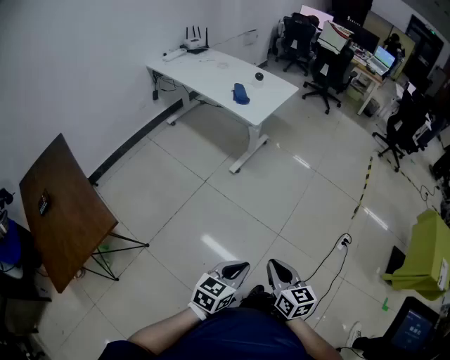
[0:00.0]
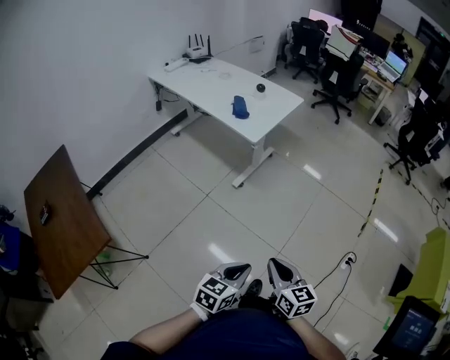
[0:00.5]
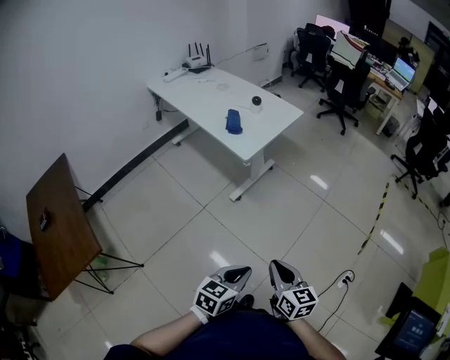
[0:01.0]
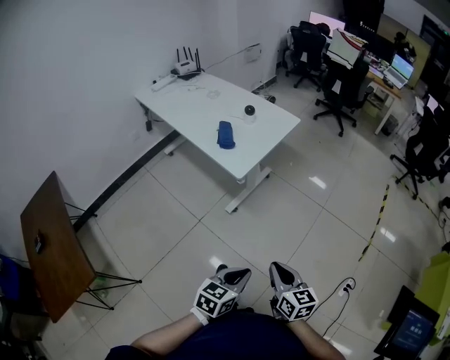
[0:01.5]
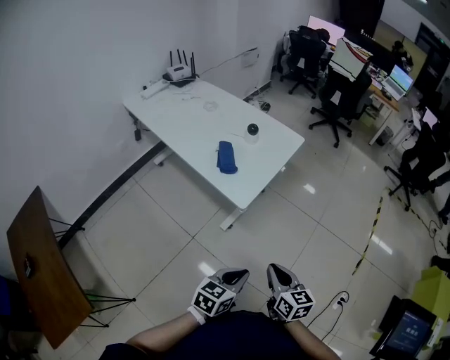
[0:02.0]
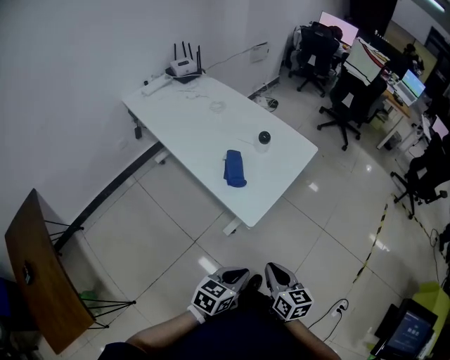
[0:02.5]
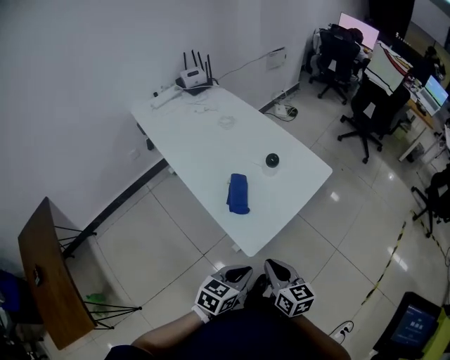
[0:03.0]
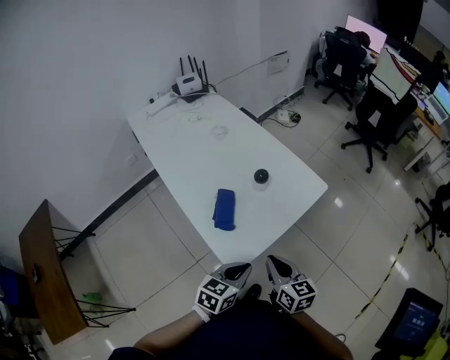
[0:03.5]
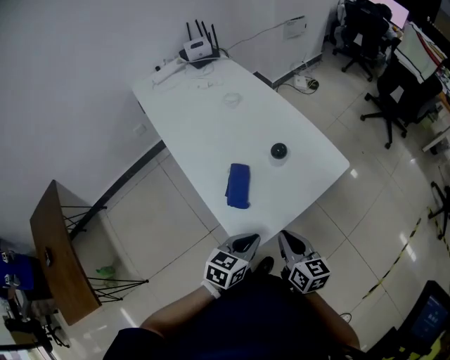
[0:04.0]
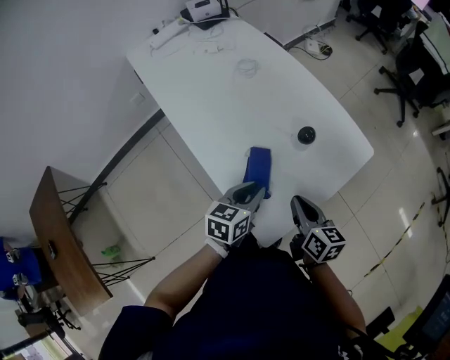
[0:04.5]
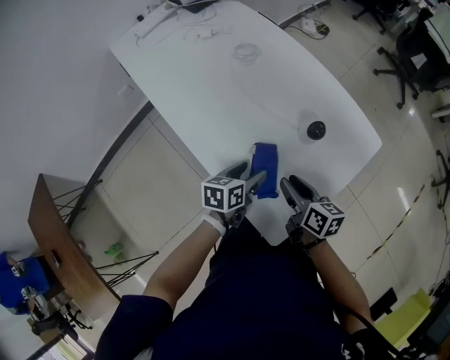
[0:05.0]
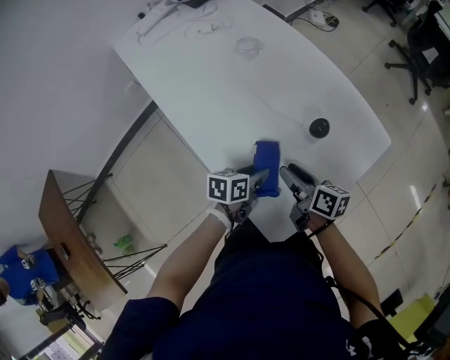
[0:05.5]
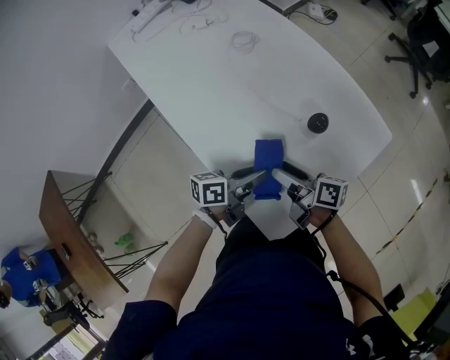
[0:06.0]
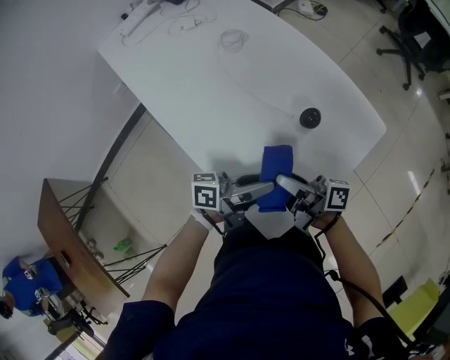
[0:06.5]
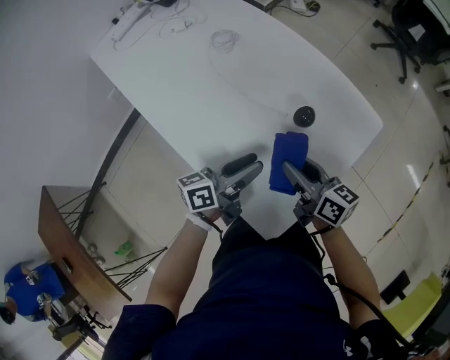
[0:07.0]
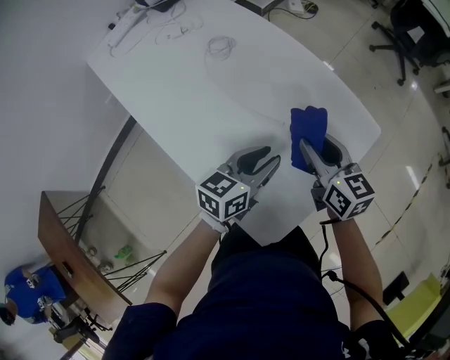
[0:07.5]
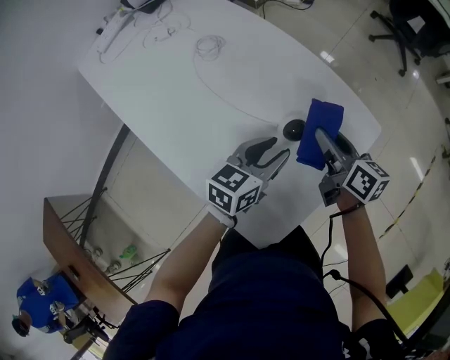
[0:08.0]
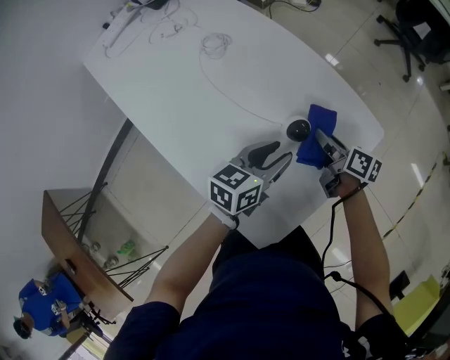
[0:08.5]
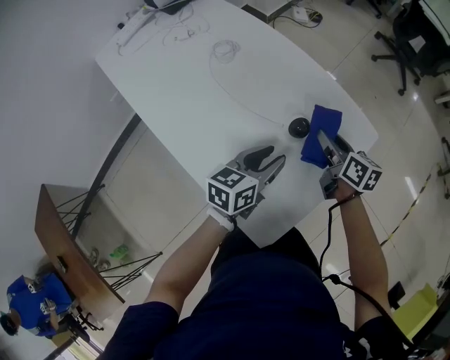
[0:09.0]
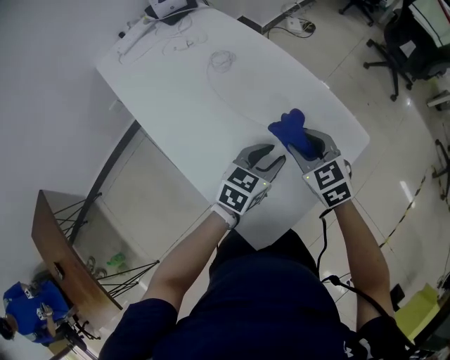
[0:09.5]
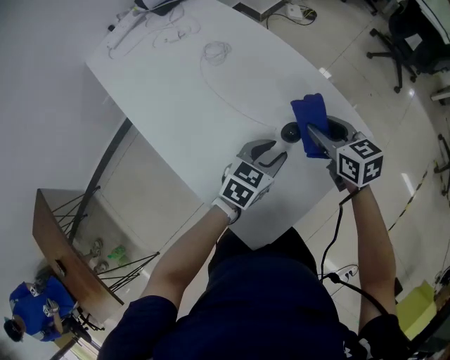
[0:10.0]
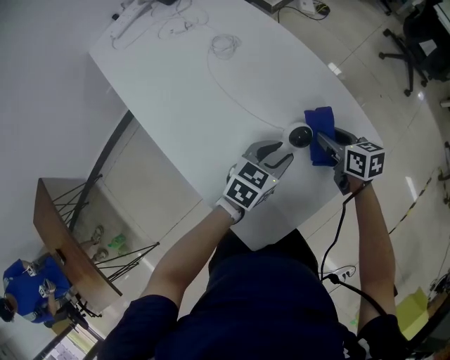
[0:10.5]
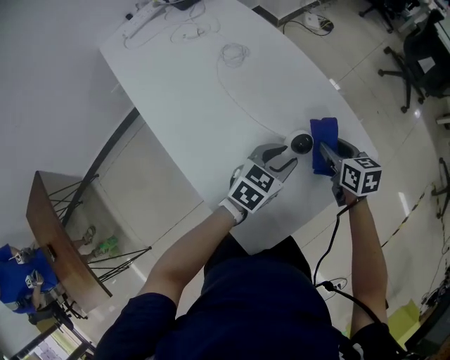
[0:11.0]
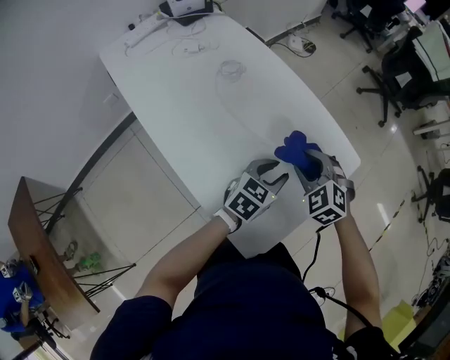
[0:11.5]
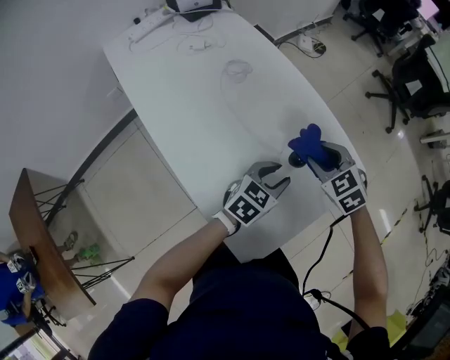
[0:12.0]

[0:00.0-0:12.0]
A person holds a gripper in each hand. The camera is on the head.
0:00.0 to 0:02.0: The pair of grippers is taken forward, about 40 cm.
0:02.0 to 0:04.0: Both grippers move forward, roughly 35 cm.
0:04.0 to 0:06.0: Both grippers move forward, to the left and downward, roughly 20 cm. The left gripper rotates roughly 40 degrees, and opens and closes again, while the right gripper rotates approximately 40 degrees, and opens its fingers.
0:06.0 to 0:08.0: The right gripper is displaced to the right and forward by some 20 cm, turns by approximately 30 degrees, and closes. Meanwhile the left gripper heads forward and to the right, covering about 15 cm, and swivels approximately 30 degrees.
0:08.0 to 0:10.0: The right gripper goes downward and returns, approximately 10 cm each way, and turns by about 40 degrees.
0:10.0 to 0:12.0: The right gripper reaches approximately 10 cm downward, then returns, and swivels about 40 degrees.

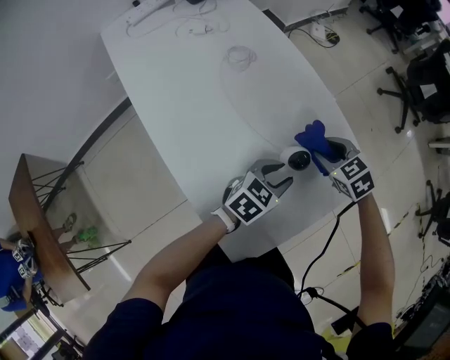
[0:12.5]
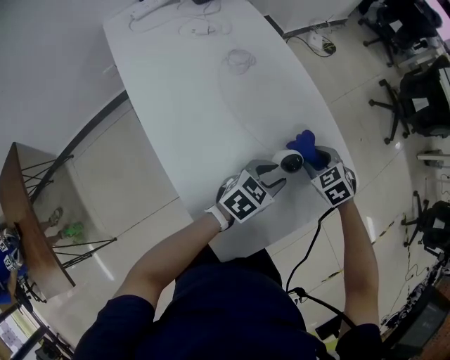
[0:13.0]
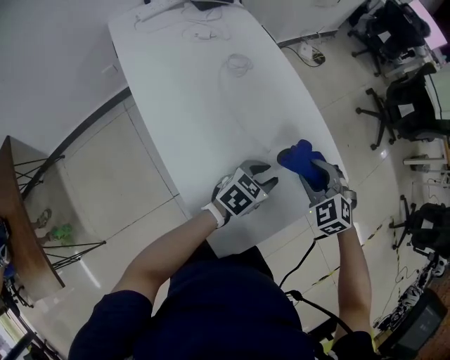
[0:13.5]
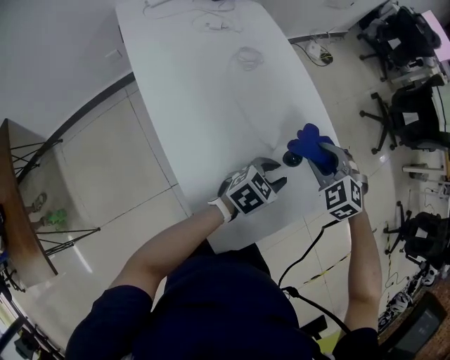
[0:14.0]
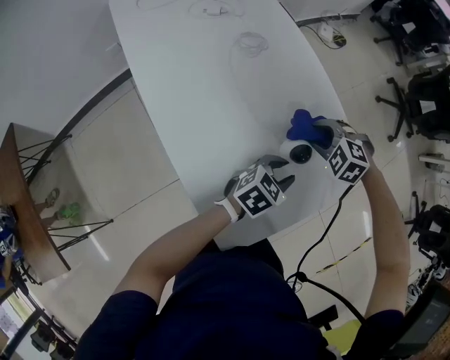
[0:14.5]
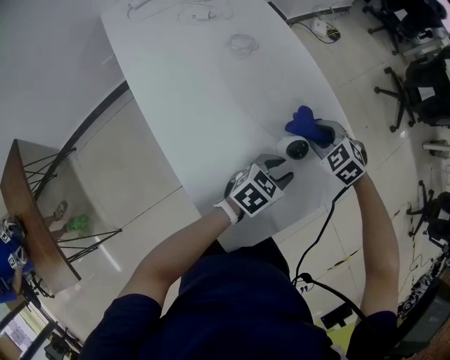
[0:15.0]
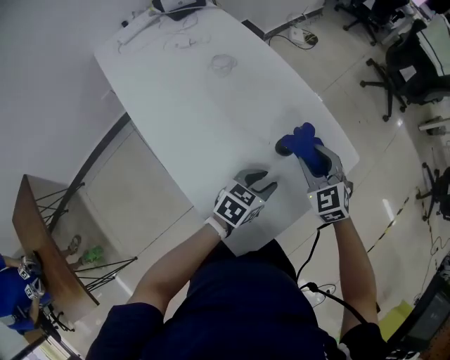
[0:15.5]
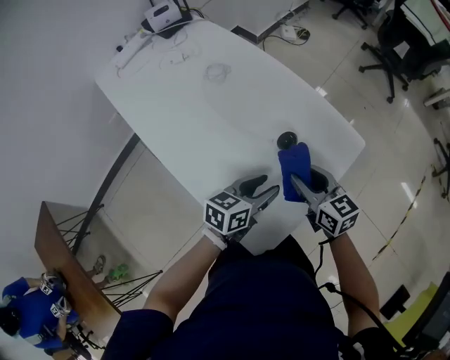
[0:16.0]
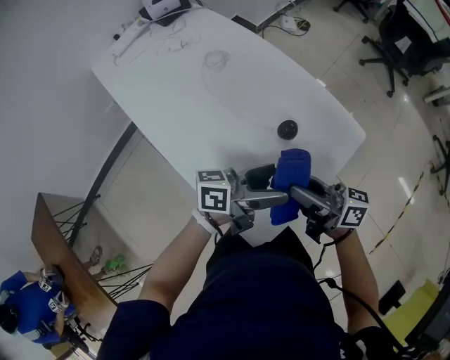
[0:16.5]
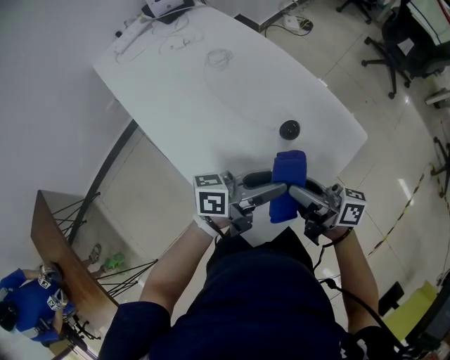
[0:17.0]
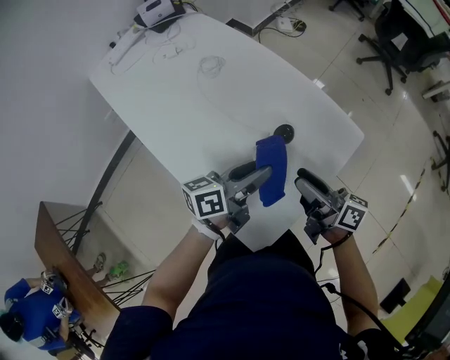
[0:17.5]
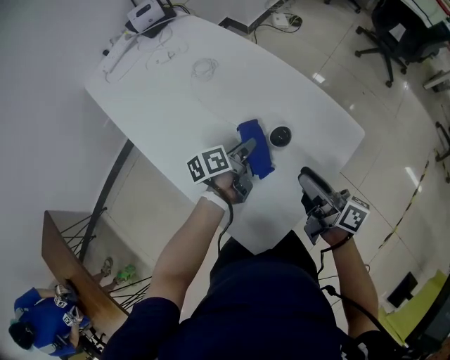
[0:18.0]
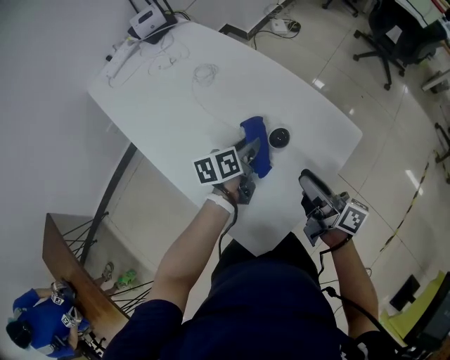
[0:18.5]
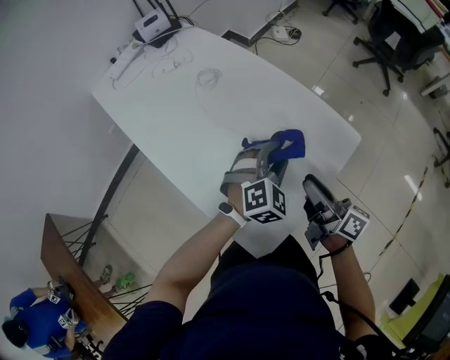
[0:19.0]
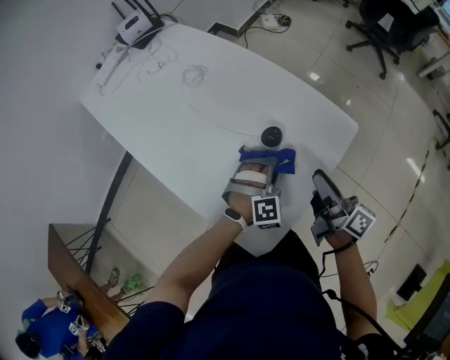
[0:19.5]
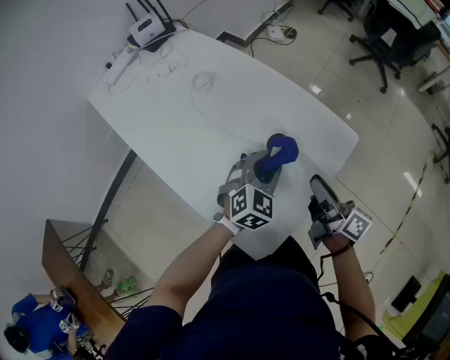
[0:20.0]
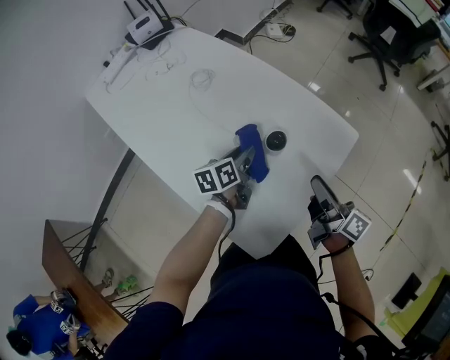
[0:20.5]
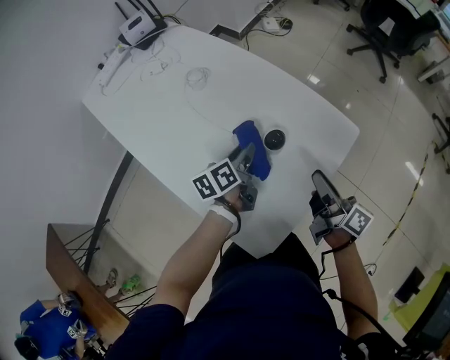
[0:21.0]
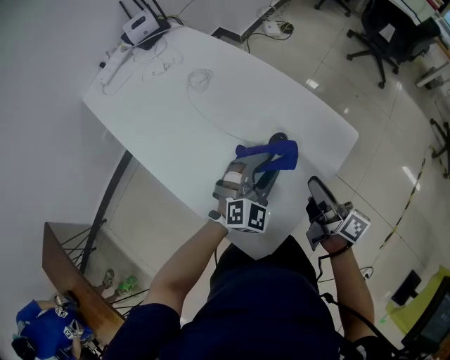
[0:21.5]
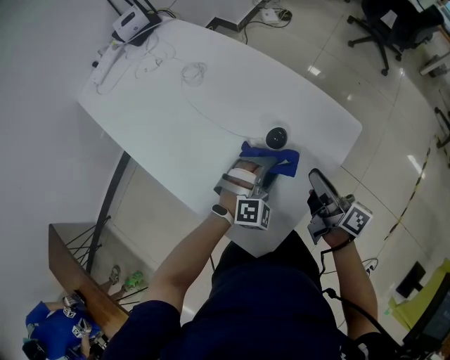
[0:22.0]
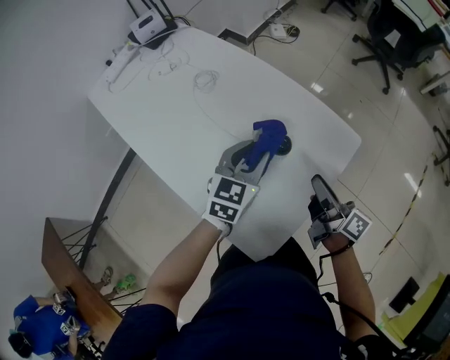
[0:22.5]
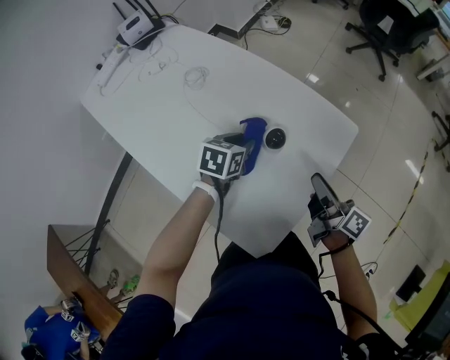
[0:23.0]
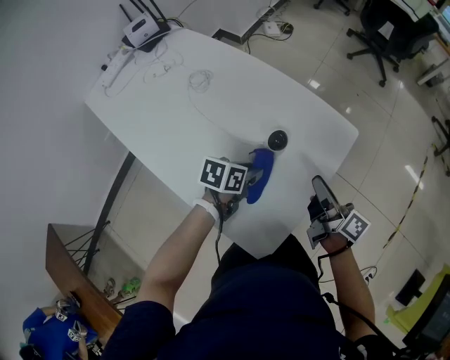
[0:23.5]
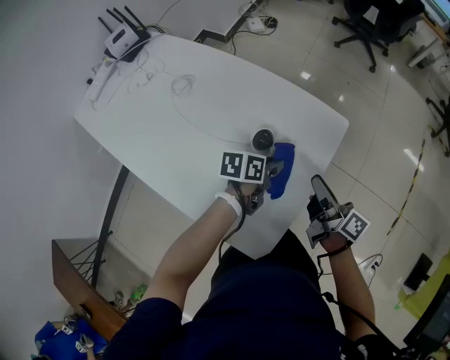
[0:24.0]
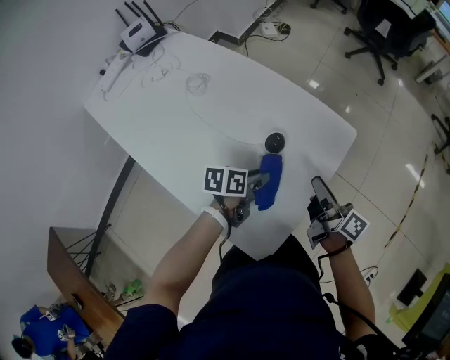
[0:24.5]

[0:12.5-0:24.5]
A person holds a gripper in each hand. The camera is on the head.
0:12.5 to 0:14.5: The right gripper travels upward and back again, some 10 cm each way, and rotates around the line of its fingers by roughly 40 degrees, counterclockwise from behind.
0:14.5 to 0:16.5: The left gripper shifts about 15 cm upward, tilts its fingers approximately 40 degrees upward, and opens its fingers, while the right gripper moves approximately 25 cm, and angles its fingers upward, by roughly 70 degrees.
0:16.5 to 0:18.5: The left gripper changes place by some 20 cm, tilts its fingers approximately 40 degrees downward, and closes up. Meanwhile the right gripper moves roughly 10 cm, and changes its angle by about 30 degrees.
0:18.5 to 0:20.5: The left gripper goes to the right and returns, approximately 10 cm each way.
0:20.5 to 0:22.5: The left gripper swings up and down, some 10 cm each way, with 2 reversals, and rotates around the line of its fingers by some 50 degrees, clockwise from behind.
0:22.5 to 0:24.5: The left gripper shifts about 15 cm downward, backward and to the right, and rotates approximately 50 degrees.

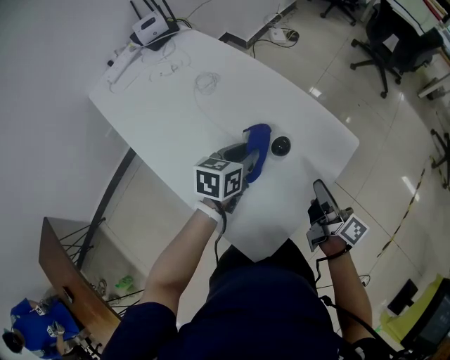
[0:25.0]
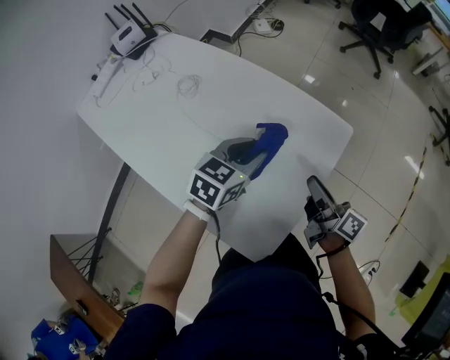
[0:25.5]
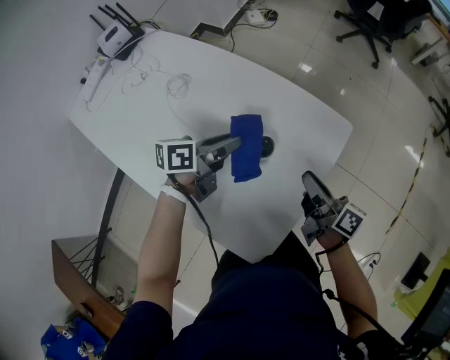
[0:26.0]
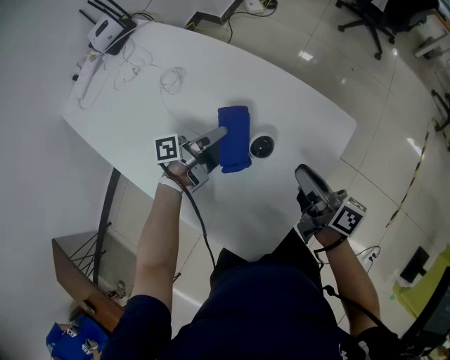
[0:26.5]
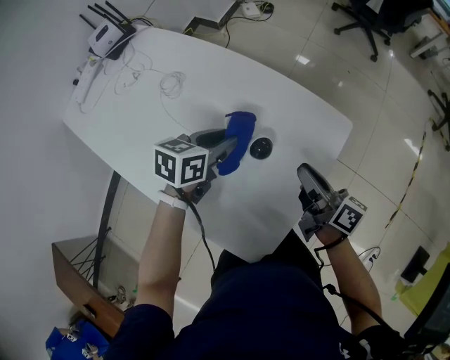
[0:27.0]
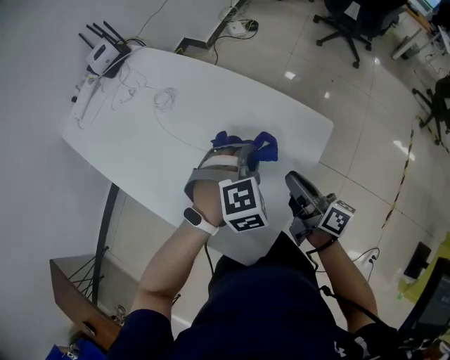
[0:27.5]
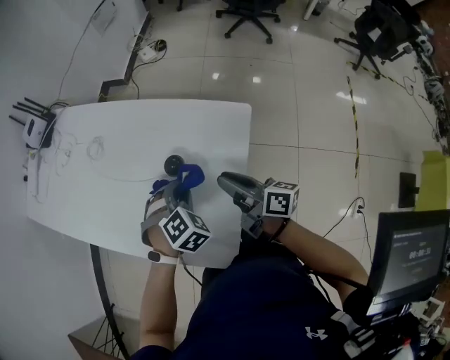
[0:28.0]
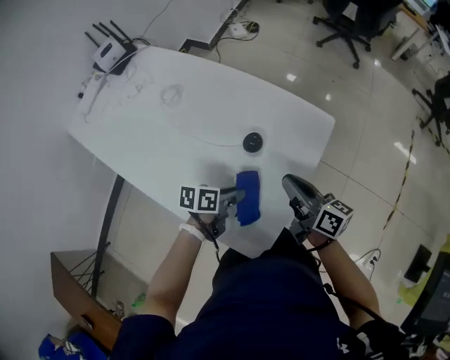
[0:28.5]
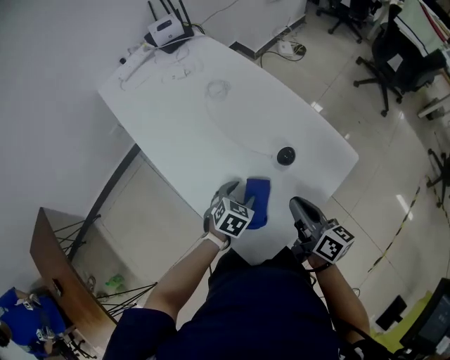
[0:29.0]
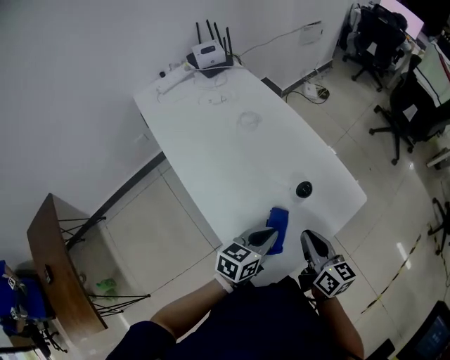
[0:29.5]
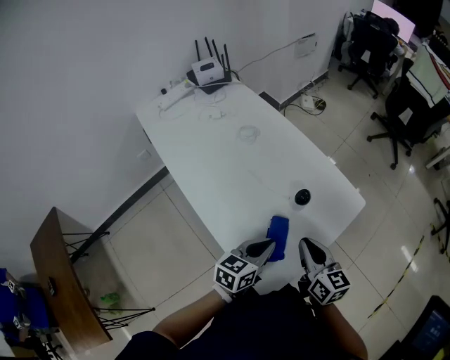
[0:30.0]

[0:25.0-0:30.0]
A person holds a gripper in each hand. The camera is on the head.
0:25.0 to 0:27.5: The left gripper swings left and right, roughly 10 cm each way, with 2 reversals, and rotates around the line of its fingers by roughly 80 degrees, clockwise from behind.
0:27.5 to 0:30.0: The right gripper moves roughly 15 cm, and turns by approximately 40 degrees, while the left gripper goes downward and returns, some 10 cm each way, twists about 80 degrees counterclockwise, seen from behind, and opens and closes again.
